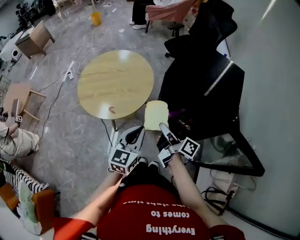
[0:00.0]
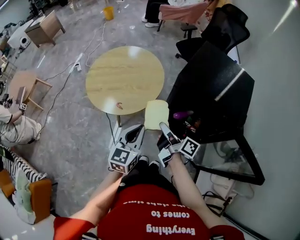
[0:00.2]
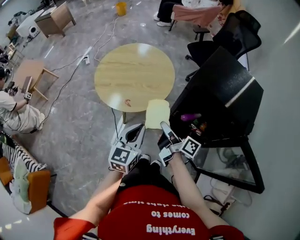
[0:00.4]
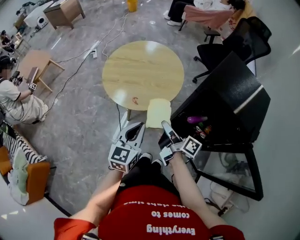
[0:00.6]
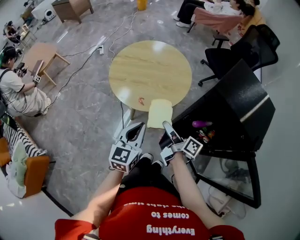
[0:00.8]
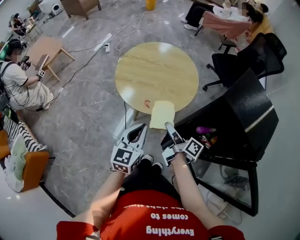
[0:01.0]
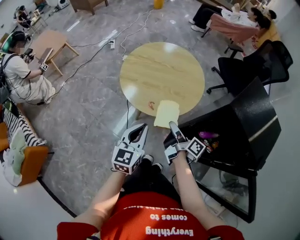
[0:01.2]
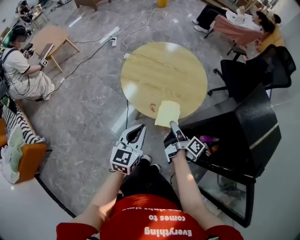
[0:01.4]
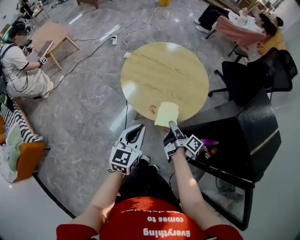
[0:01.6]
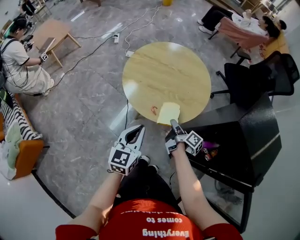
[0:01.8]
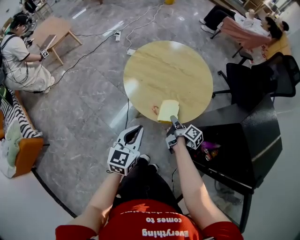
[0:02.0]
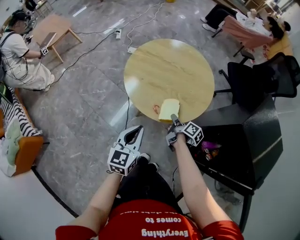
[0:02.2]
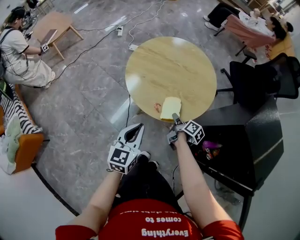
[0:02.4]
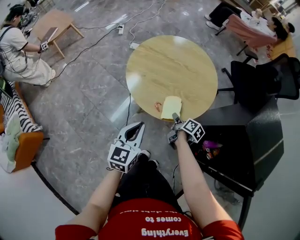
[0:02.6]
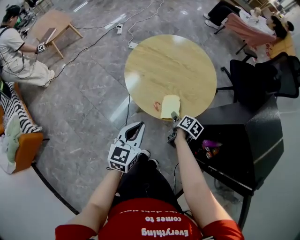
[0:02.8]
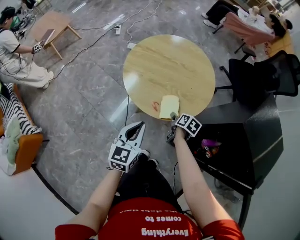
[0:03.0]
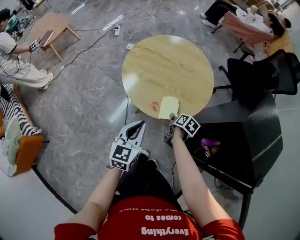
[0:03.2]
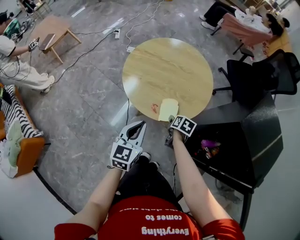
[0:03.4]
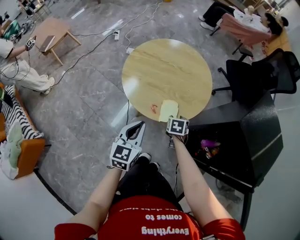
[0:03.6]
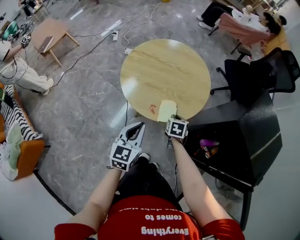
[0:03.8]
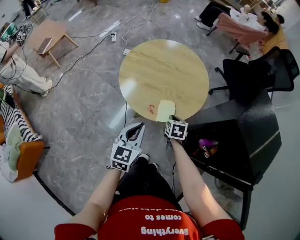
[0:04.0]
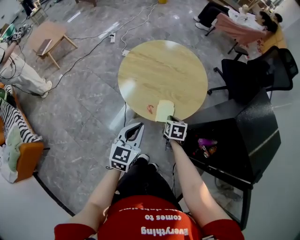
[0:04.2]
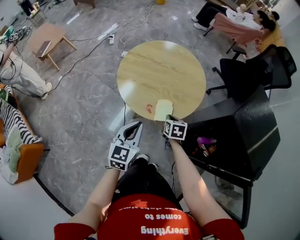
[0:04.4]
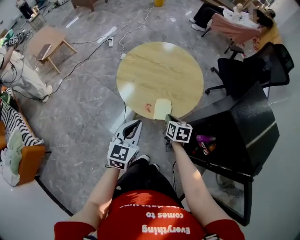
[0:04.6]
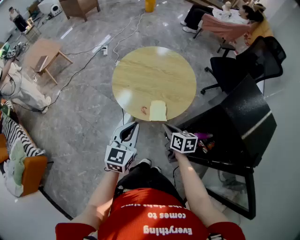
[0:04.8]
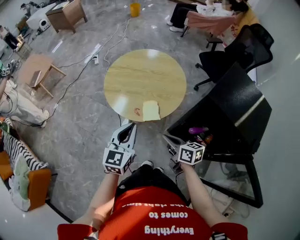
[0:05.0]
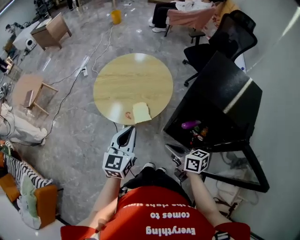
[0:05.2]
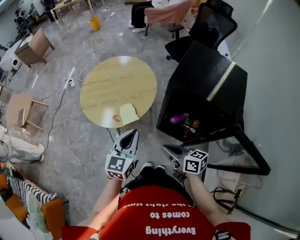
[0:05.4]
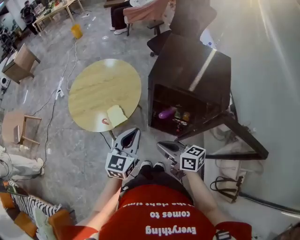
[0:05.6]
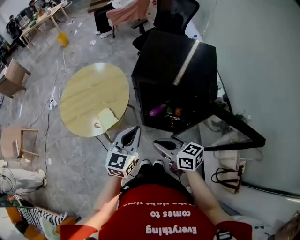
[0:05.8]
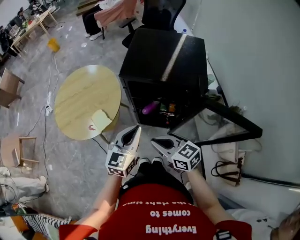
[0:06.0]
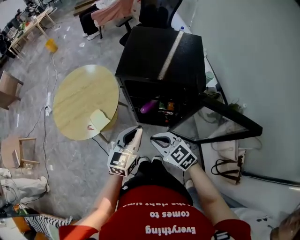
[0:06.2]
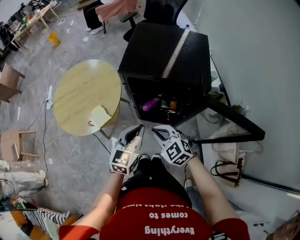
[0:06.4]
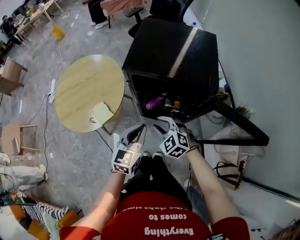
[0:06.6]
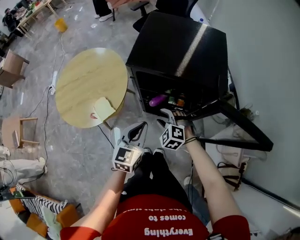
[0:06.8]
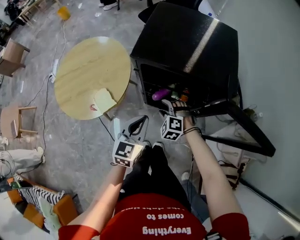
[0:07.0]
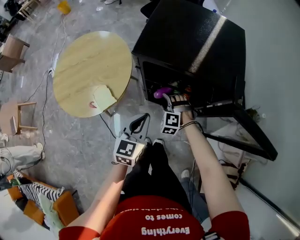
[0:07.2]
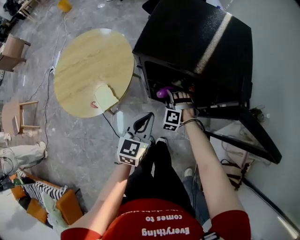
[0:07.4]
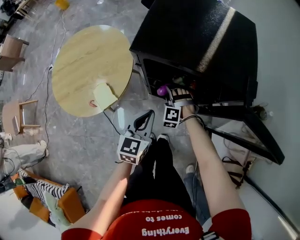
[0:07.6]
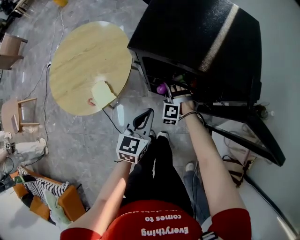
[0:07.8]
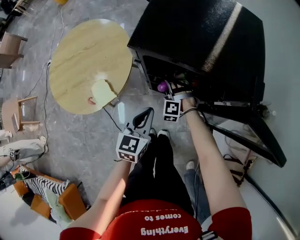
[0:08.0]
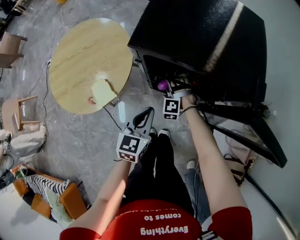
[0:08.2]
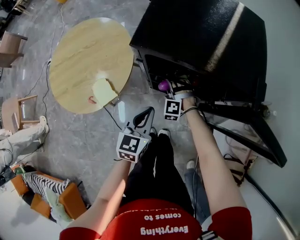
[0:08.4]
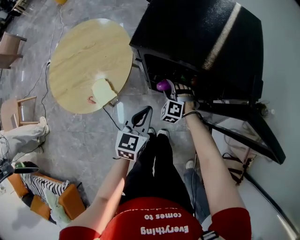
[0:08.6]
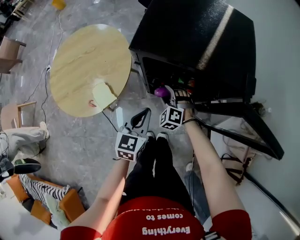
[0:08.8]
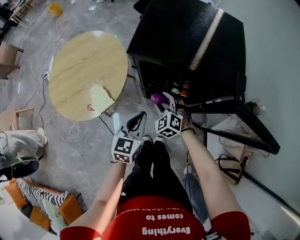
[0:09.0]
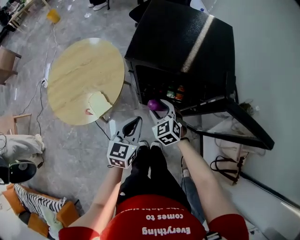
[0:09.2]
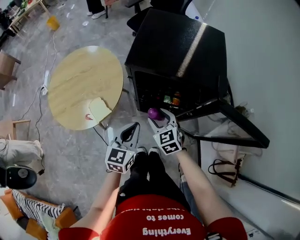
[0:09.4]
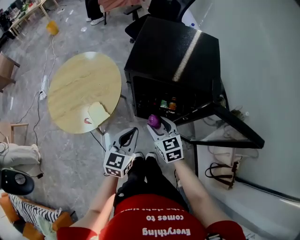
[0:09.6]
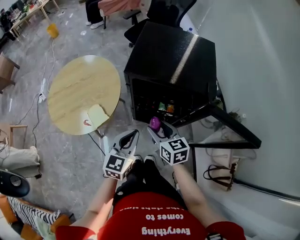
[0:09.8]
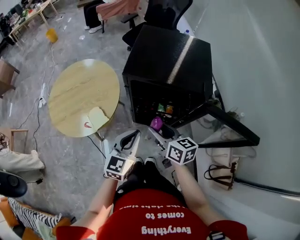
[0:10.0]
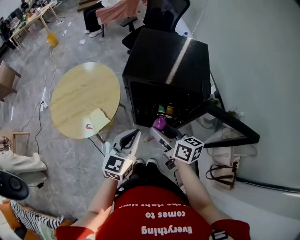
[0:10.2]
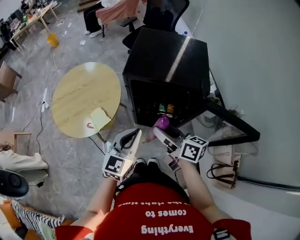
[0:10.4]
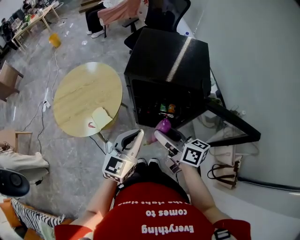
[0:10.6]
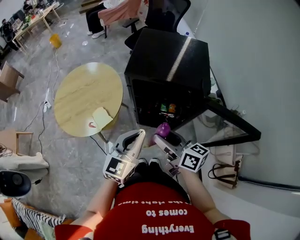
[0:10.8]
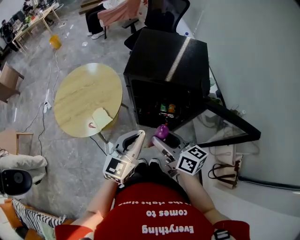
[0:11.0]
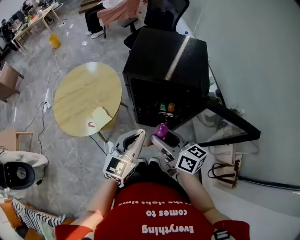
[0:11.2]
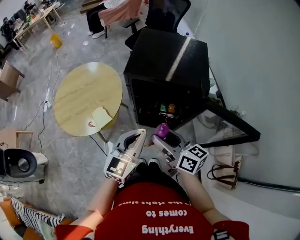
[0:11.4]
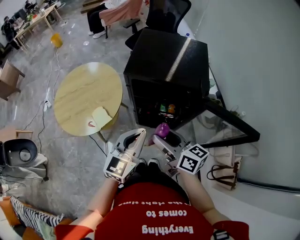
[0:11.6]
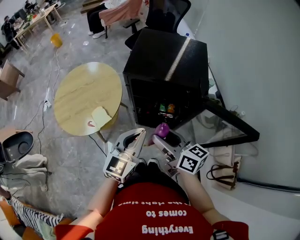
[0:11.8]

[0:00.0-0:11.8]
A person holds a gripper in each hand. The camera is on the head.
0:00.0 to 0:01.4: The left gripper moves to the left, roughly 20 cm, and turns by some 30 degrees, while the right gripper shifts about 20 cm to the left, forward and downward.
0:01.4 to 0:03.0: The left gripper shifts by approximately 5 cm. The right gripper heads downward and forward, covering approximately 15 cm, and tips its fingers downward by some 40 degrees.
0:03.0 to 0:04.4: The right gripper ends up about 5 cm from where it was, rotates some 30 degrees, and closes up.
0:04.4 to 0:06.0: The right gripper ends up roughly 40 cm from where it was, and tips its fingers upward by some 30 degrees. Meanwhile the left gripper ends up approximately 30 cm from where it was, and changes its angle by about 40 degrees.
0:06.0 to 0:07.4: The left gripper shifts some 10 cm downward, while the right gripper travels downward and forward by roughly 35 cm, twists some 70 degrees counterclockwise, seen from behind, and opens.
0:07.4 to 0:08.8: The grippers make only small movements.
0:08.8 to 0:10.4: The left gripper is displaced upward and backward by about 20 cm, while the right gripper shifts roughly 30 cm upward and backward, and twists about 90 degrees clockwise, seen from behind.
0:10.4 to 0:11.8: The grippers stay close to where they were, moving slightly.

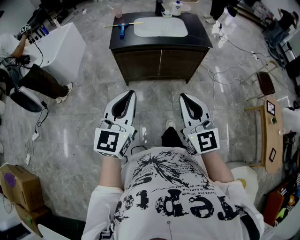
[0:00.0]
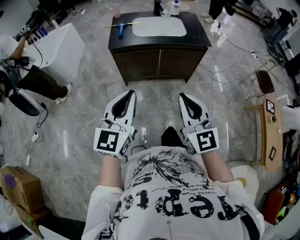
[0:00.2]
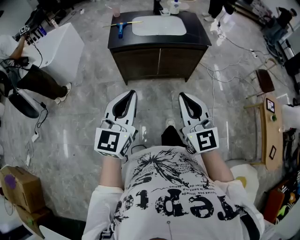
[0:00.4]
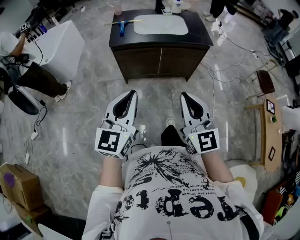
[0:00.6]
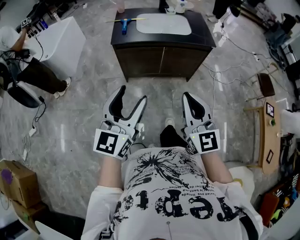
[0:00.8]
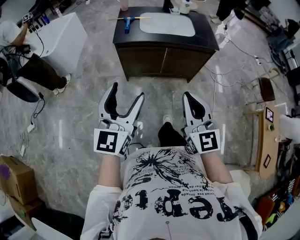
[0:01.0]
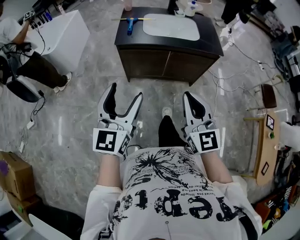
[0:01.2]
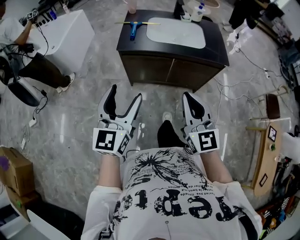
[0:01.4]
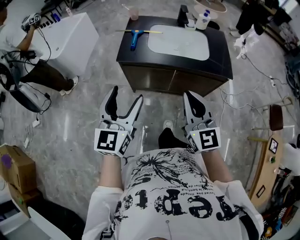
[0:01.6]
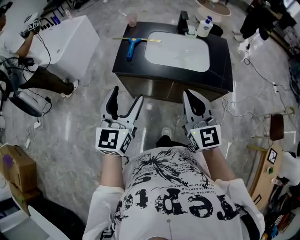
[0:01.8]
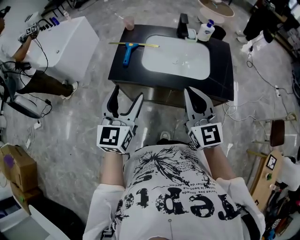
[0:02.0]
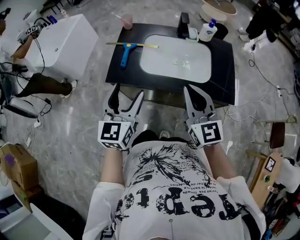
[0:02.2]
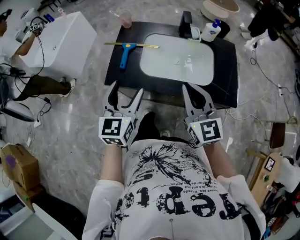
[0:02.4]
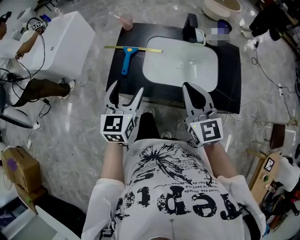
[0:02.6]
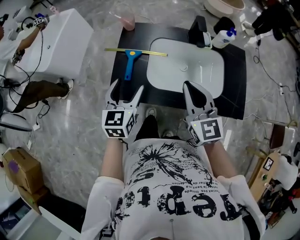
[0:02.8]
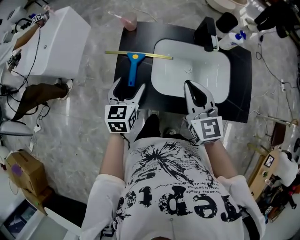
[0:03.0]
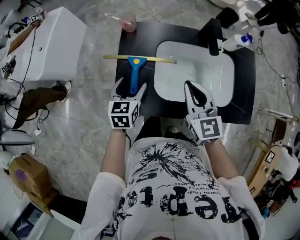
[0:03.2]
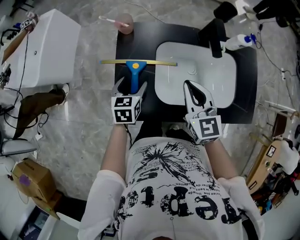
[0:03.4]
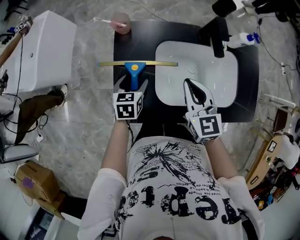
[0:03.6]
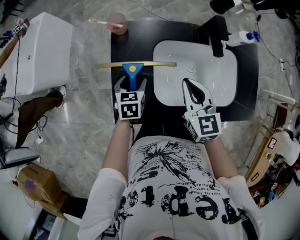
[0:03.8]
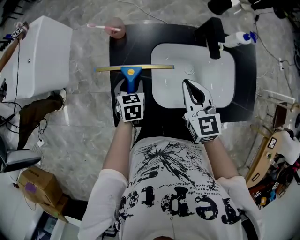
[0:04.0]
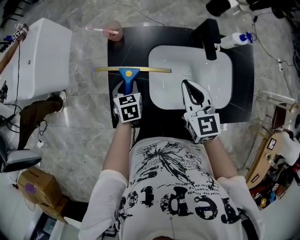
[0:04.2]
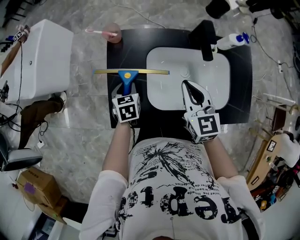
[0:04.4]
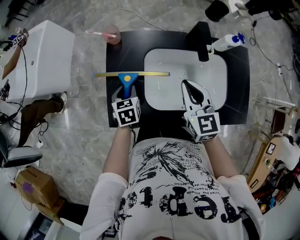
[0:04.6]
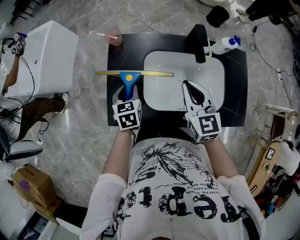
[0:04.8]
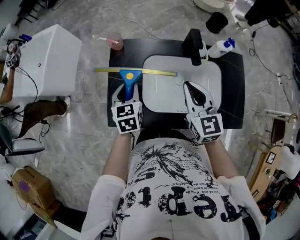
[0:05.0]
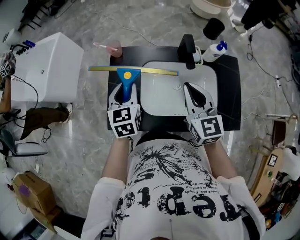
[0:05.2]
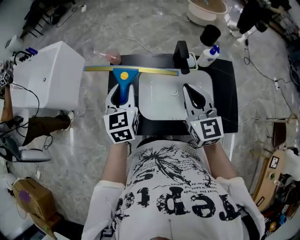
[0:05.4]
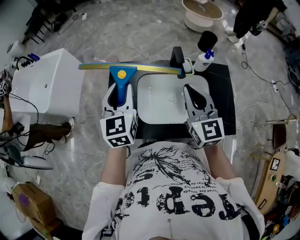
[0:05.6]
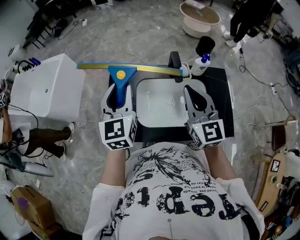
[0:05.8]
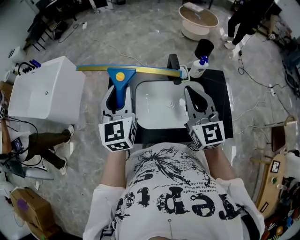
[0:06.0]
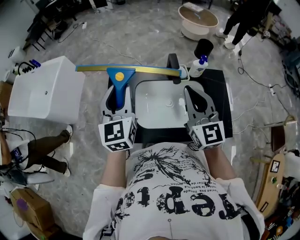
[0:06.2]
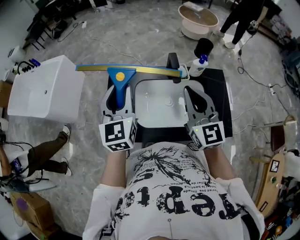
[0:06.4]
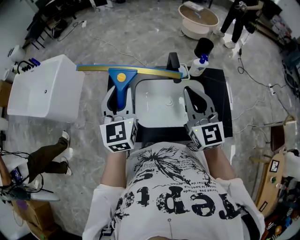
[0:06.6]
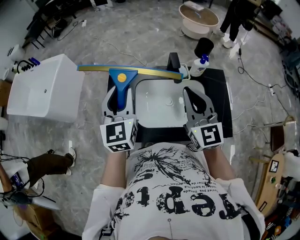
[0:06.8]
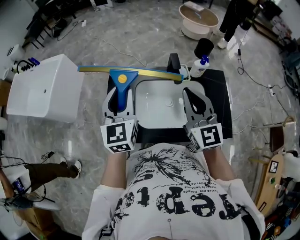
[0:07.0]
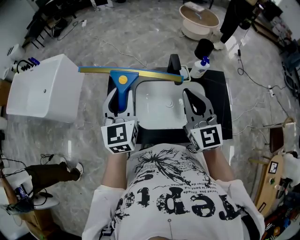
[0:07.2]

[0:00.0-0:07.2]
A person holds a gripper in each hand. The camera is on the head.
0:00.0 to 0:01.4: Both grippers travel together forward, roughly 20 cm. The left gripper opens.
0:01.4 to 0:02.8: The two grippers travel together, forward, roughly 50 cm. The left gripper turns by about 20 degrees.
0:02.8 to 0:04.4: The two grippers go roughly 25 cm forward and downward. The left gripper changes its angle by some 30 degrees, and closes up.
0:04.4 to 0:05.8: The left gripper is displaced upward by roughly 35 cm, and tips its fingers upward by some 40 degrees. Meanwhile the right gripper travels upward, to the right and backward by roughly 25 cm, and changes its angle by approximately 20 degrees.
0:05.8 to 0:07.2: The grippers move only a little.

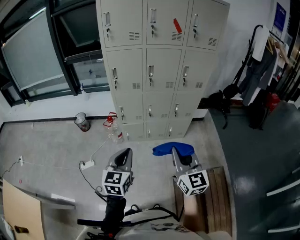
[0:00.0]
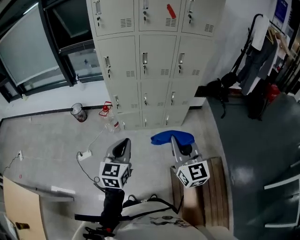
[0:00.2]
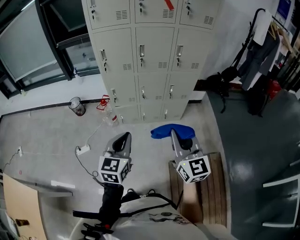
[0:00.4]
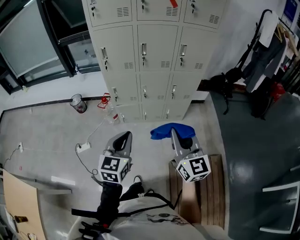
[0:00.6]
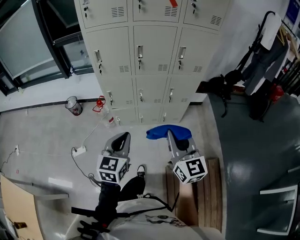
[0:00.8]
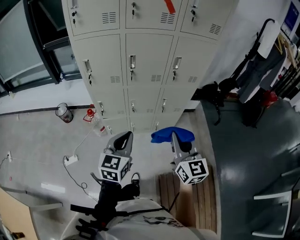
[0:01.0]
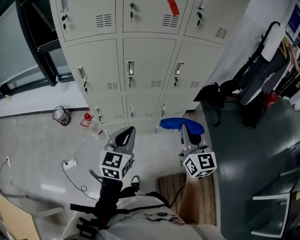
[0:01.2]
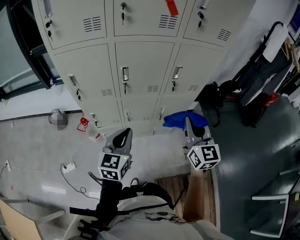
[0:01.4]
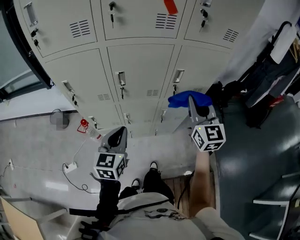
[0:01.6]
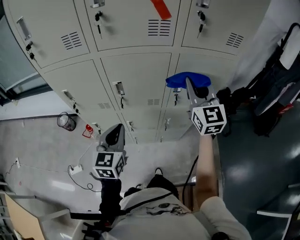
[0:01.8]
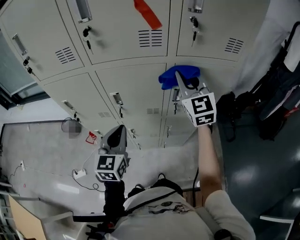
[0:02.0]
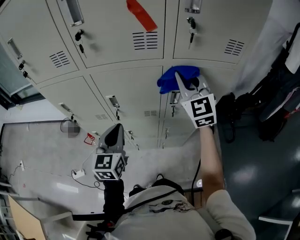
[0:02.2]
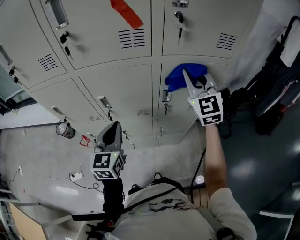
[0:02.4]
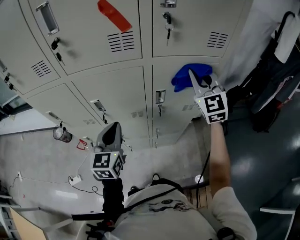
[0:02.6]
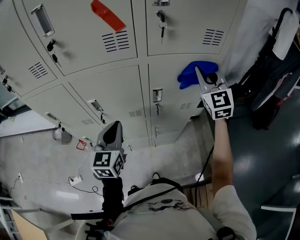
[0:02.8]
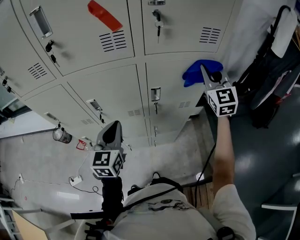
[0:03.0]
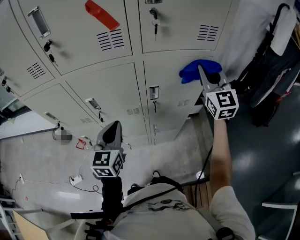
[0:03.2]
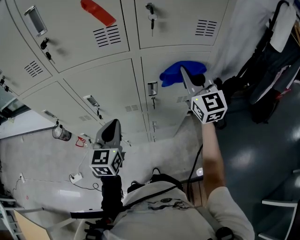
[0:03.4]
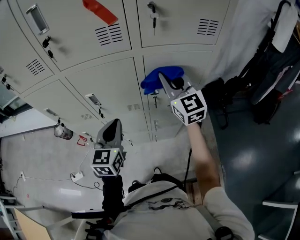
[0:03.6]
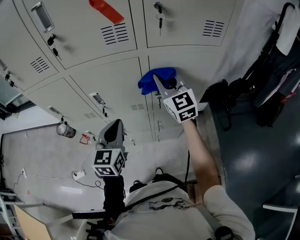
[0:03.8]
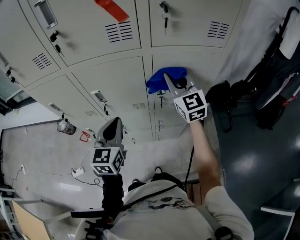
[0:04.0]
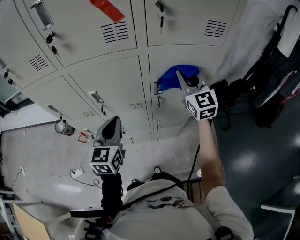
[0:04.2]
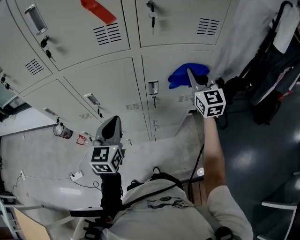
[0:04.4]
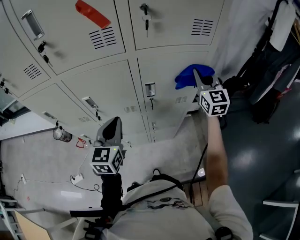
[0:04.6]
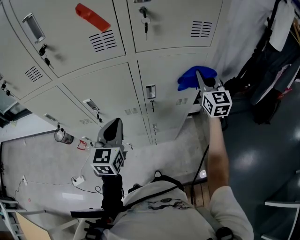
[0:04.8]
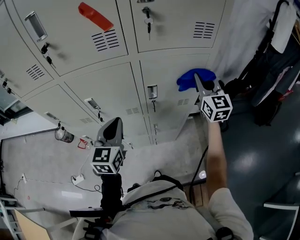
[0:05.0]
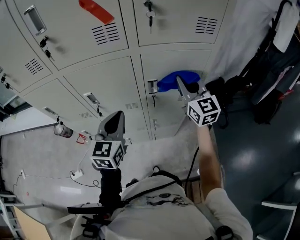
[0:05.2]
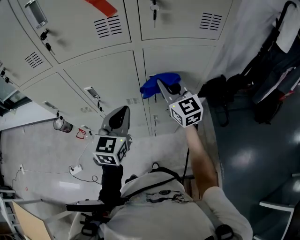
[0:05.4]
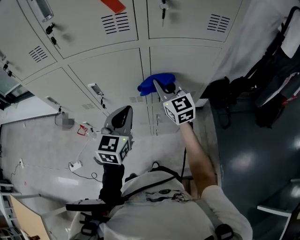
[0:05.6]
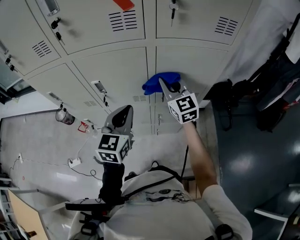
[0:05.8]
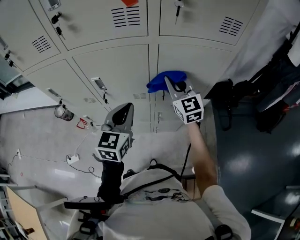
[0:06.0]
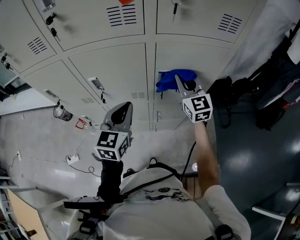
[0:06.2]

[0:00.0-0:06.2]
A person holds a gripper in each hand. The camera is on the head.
0:00.0 to 0:01.6: The two grippers travel together, forward, about 50 cm.
0:01.6 to 0:03.2: The left gripper moves forward and to the right, about 15 cm. Meanwhile the right gripper shifts roughly 25 cm to the right and forward.
0:03.2 to 0:04.6: The right gripper heads downward, covering about 5 cm, and moves some 20 cm to the left and comes back.
0:04.6 to 0:06.2: The right gripper moves to the left and downward, roughly 15 cm.
